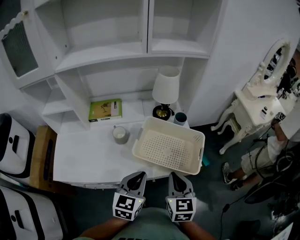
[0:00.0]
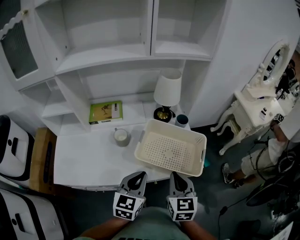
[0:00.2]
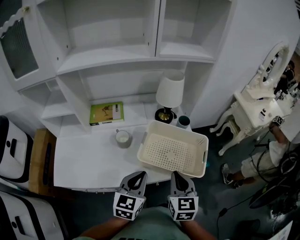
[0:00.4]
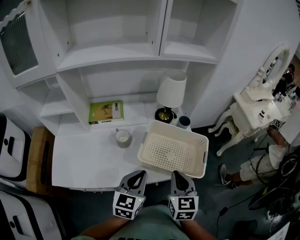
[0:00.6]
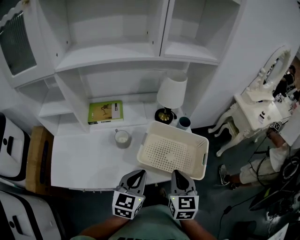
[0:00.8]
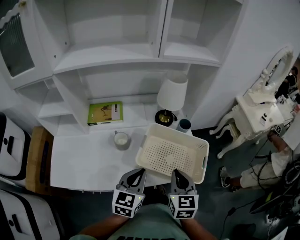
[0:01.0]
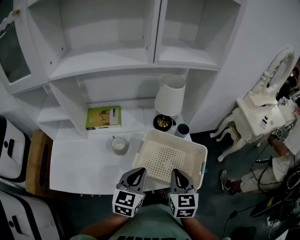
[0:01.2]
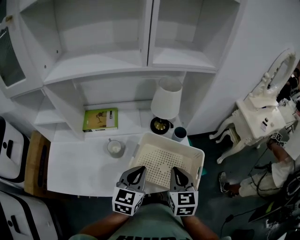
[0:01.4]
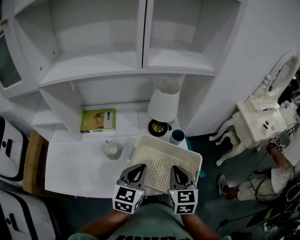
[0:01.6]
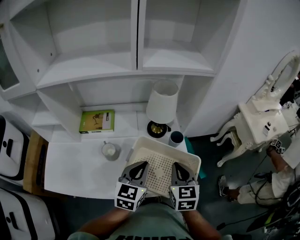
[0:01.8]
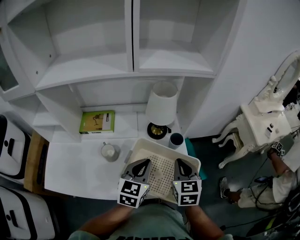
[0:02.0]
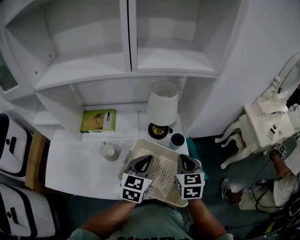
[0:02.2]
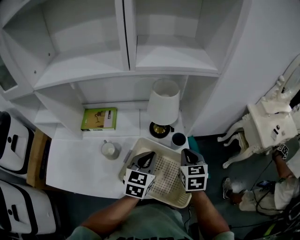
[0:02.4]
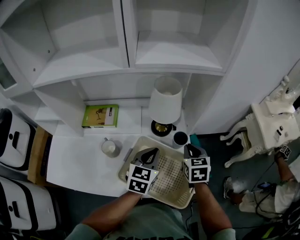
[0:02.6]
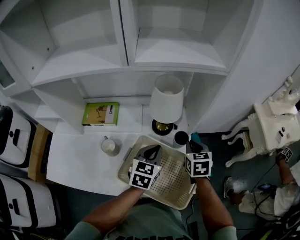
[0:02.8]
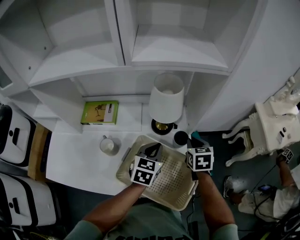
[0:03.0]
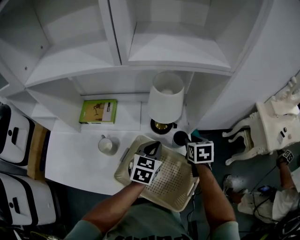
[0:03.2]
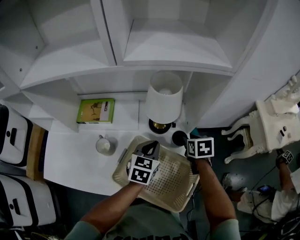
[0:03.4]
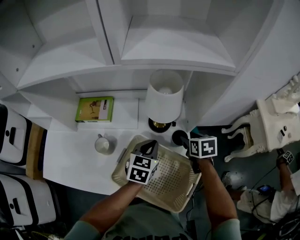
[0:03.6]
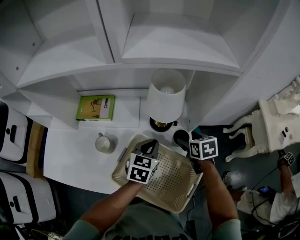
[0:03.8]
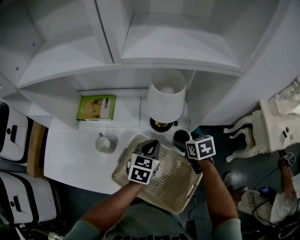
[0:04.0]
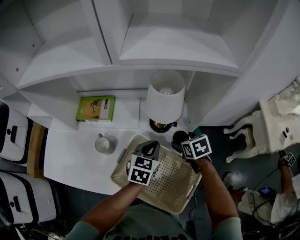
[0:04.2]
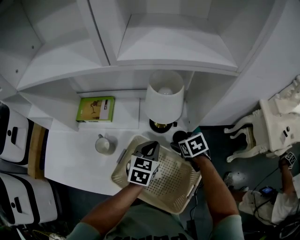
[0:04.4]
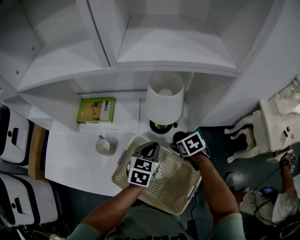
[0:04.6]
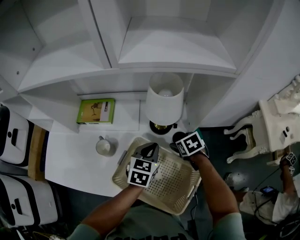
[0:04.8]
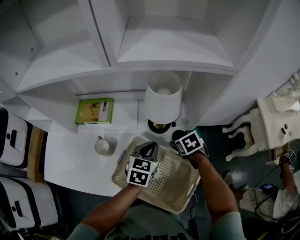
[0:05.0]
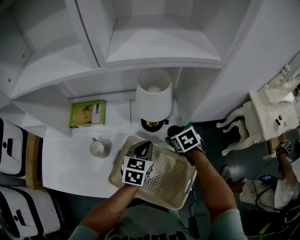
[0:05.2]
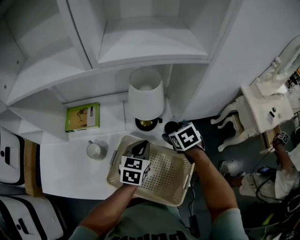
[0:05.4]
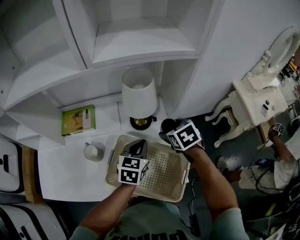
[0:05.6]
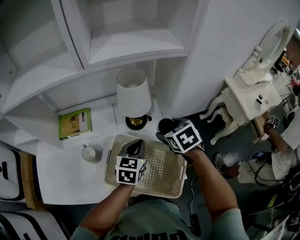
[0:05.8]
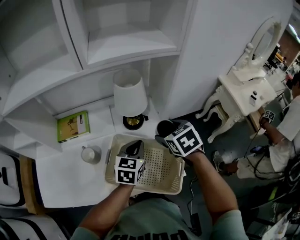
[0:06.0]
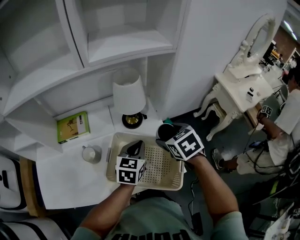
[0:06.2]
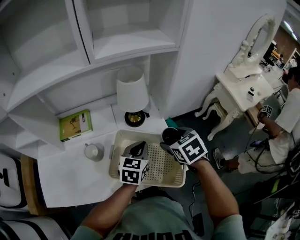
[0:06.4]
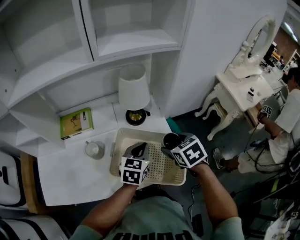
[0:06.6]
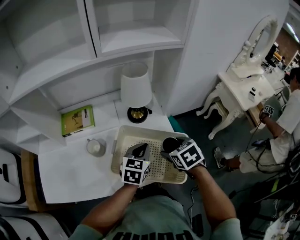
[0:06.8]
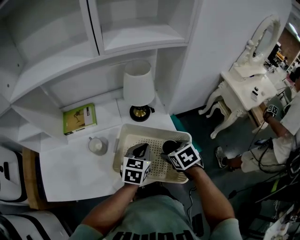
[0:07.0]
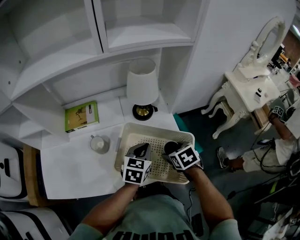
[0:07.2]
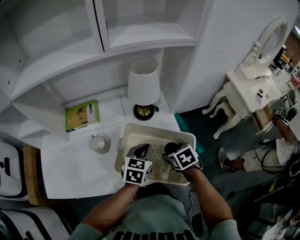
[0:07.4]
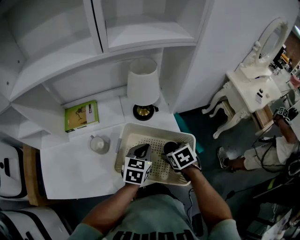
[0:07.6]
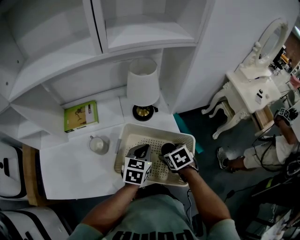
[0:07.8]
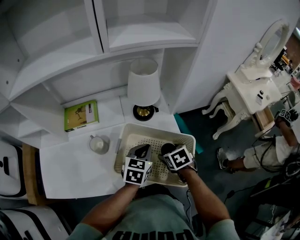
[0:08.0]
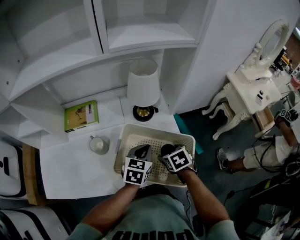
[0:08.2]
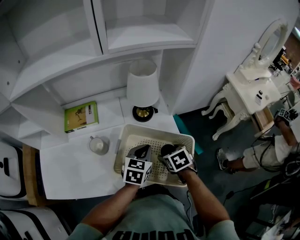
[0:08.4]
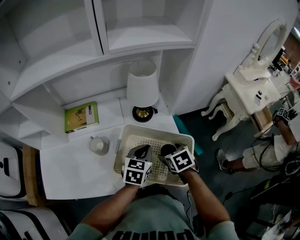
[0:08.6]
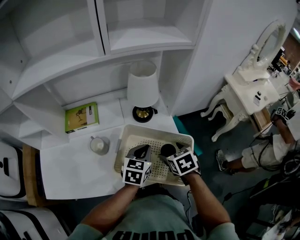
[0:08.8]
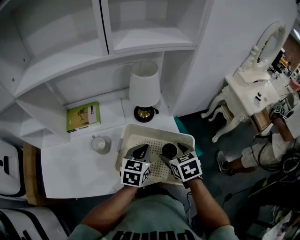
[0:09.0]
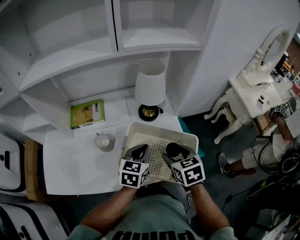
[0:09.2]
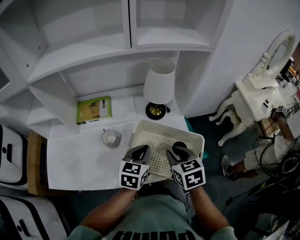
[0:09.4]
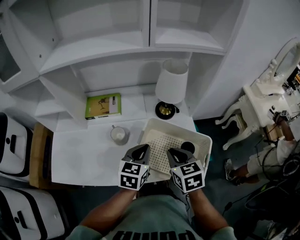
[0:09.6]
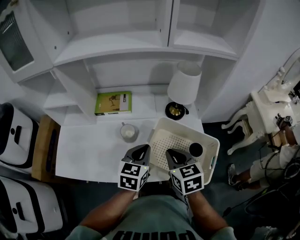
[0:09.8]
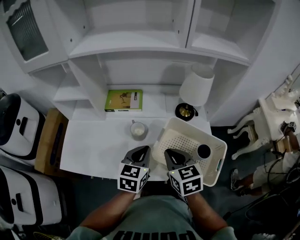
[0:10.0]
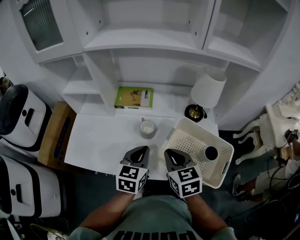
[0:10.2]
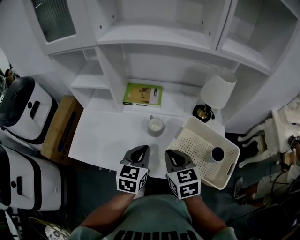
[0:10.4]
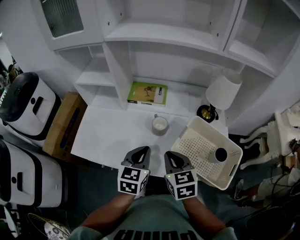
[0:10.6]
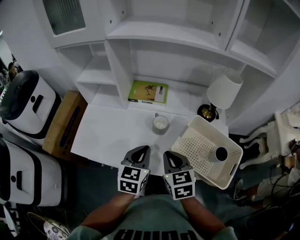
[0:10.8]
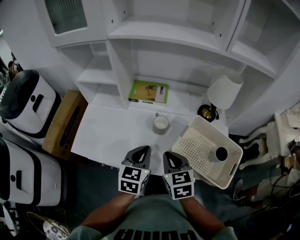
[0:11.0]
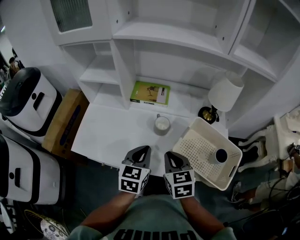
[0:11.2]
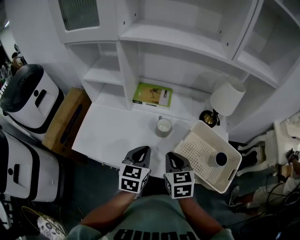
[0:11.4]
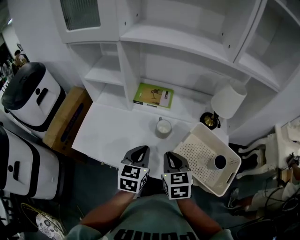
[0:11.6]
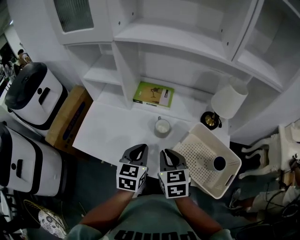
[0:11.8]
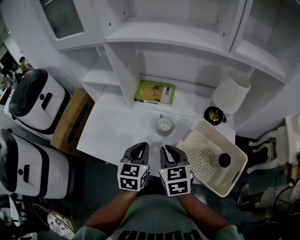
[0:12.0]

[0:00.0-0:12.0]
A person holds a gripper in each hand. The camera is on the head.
0.0 to 1.6 s: The grippers both shift forward by some 15 cm.
1.6 to 3.0 s: The right gripper goes roughly 20 cm forward. Meanwhile the left gripper goes about 20 cm forward, to the right and downward.
3.0 to 4.4 s: The right gripper moves downward, roughly 10 cm, turns by about 30 degrees, and opens.
4.4 to 6.0 s: The left gripper shifts about 5 cm backward. Meanwhile the right gripper shifts about 15 cm upward and backward.
6.0 to 7.6 s: The left gripper moves backward, about 5 cm. Meanwhile the right gripper shifts some 15 cm downward and backward.
7.6 to 9.0 s: The right gripper travels upward by about 5 cm.
9.0 to 10.4 s: The grippers both shift to the left by about 25 cm. The right gripper swivels roughly 30 degrees, and closes its fingers, while the left gripper rotates roughly 30 degrees.
10.4 to 12.0 s: The grippers stay close to where they were, moving slightly.

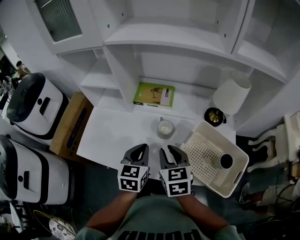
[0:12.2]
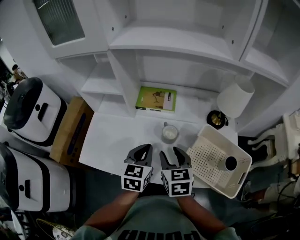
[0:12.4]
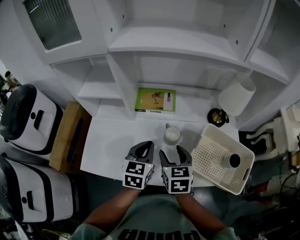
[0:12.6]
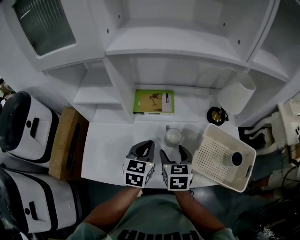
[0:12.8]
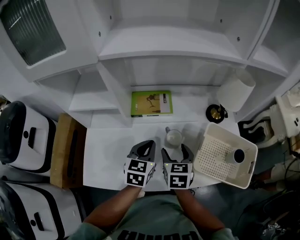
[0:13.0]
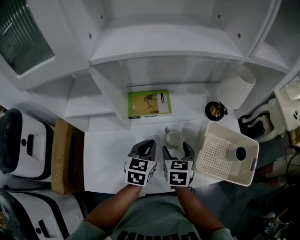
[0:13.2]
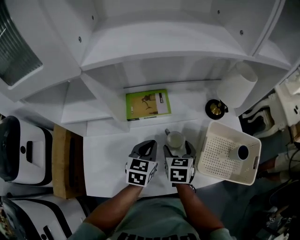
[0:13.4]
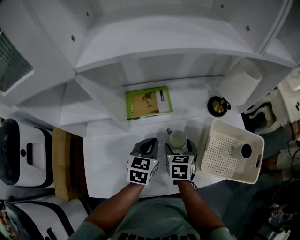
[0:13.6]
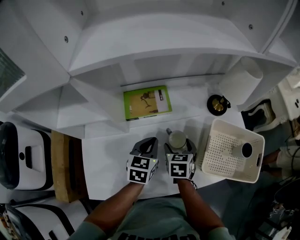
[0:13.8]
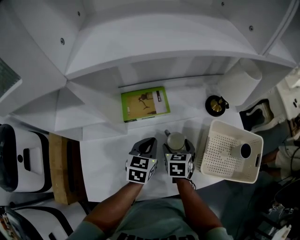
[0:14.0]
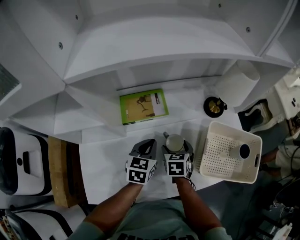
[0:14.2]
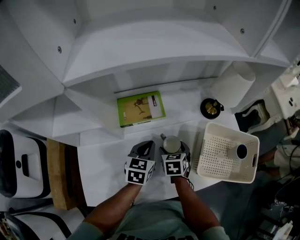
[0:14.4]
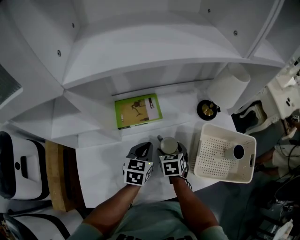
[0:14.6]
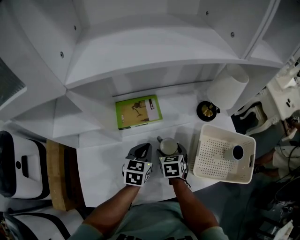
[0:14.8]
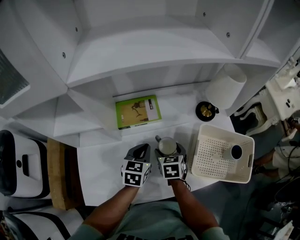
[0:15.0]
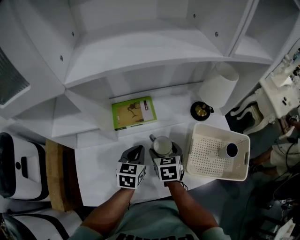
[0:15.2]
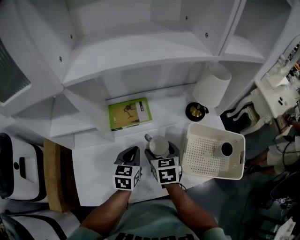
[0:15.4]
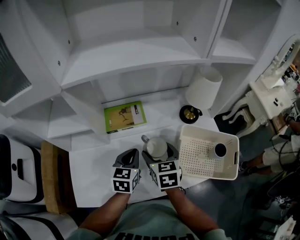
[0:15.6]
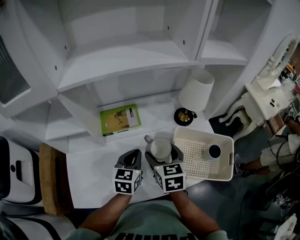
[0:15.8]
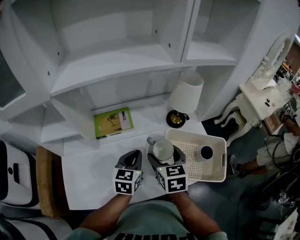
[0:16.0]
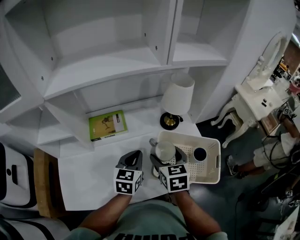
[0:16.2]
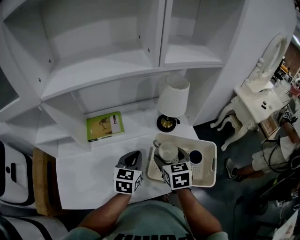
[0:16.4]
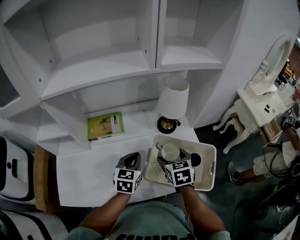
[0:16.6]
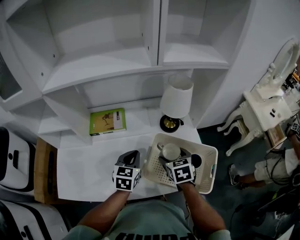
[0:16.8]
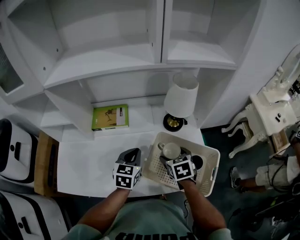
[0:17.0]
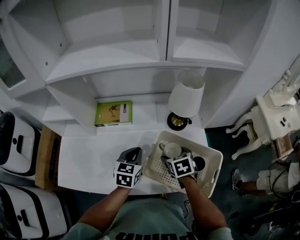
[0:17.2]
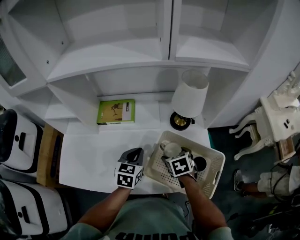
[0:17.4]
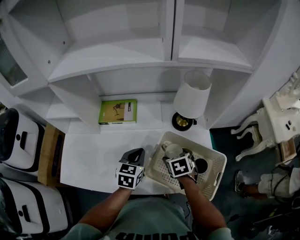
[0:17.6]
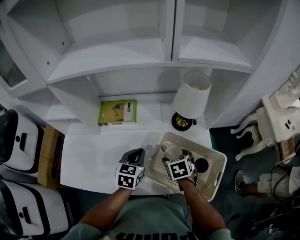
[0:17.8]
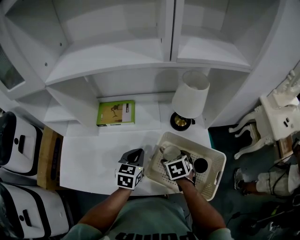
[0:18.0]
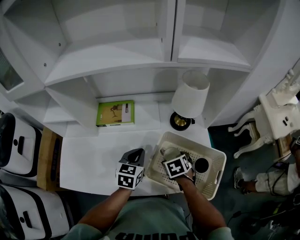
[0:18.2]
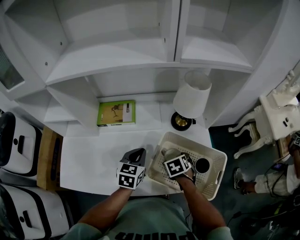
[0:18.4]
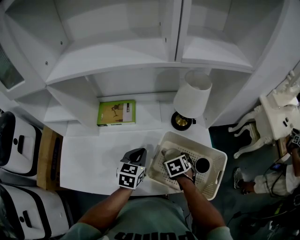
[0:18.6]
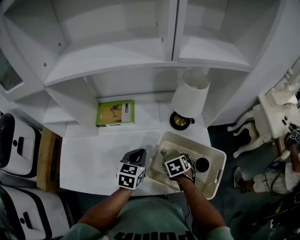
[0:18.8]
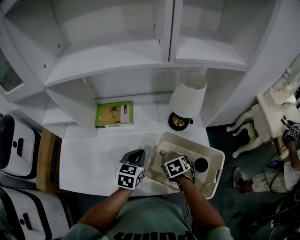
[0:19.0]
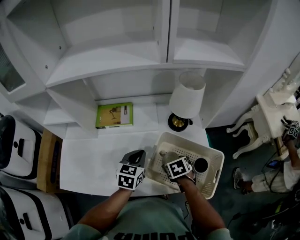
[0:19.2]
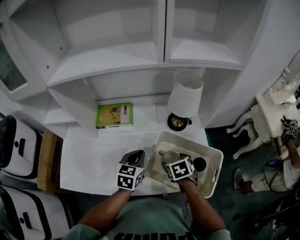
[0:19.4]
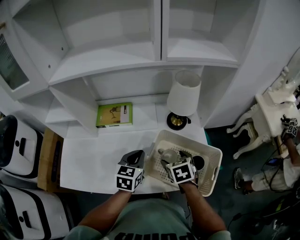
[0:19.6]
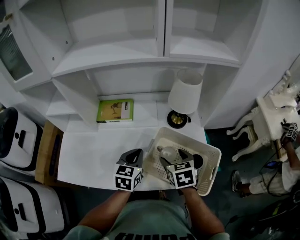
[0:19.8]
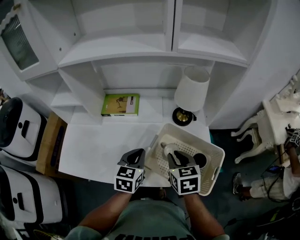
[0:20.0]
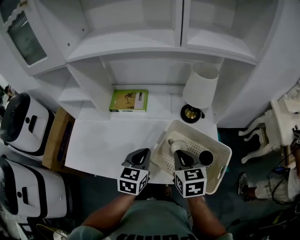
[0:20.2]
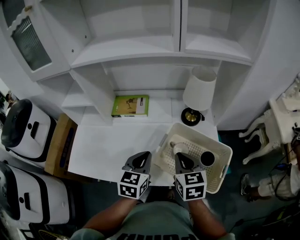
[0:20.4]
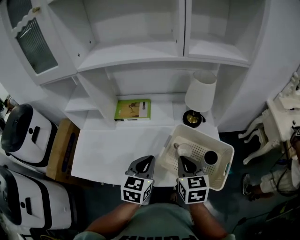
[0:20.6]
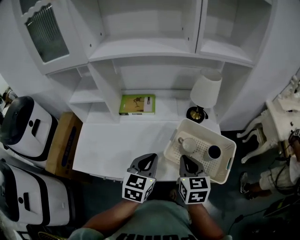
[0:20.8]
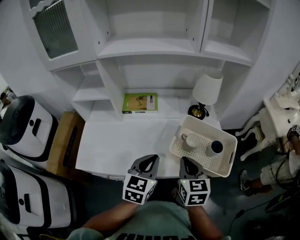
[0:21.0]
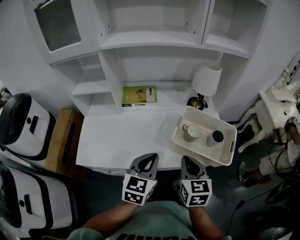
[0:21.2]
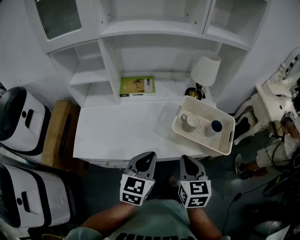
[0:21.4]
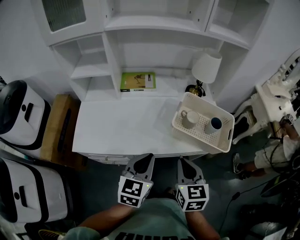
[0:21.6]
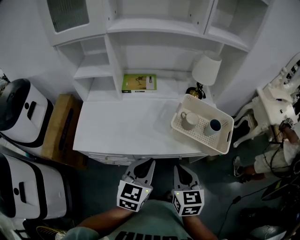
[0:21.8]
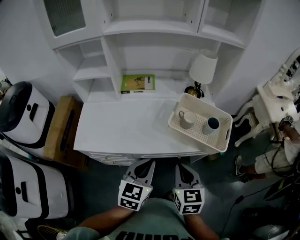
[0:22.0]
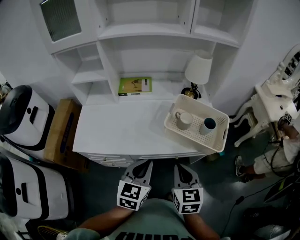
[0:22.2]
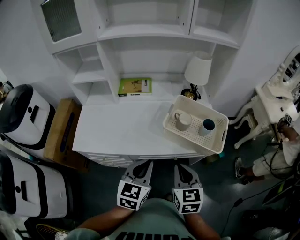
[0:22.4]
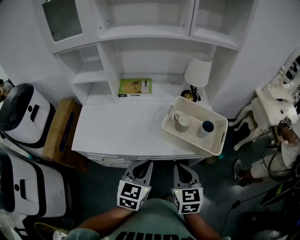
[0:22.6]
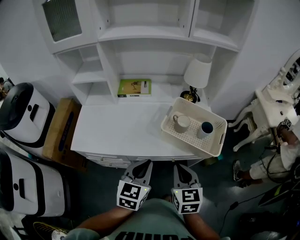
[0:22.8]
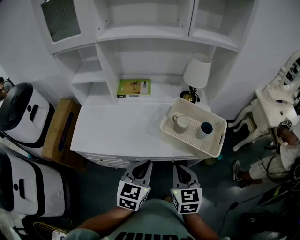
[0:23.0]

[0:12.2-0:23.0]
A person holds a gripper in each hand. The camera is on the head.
12.2 to 13.8 s: The left gripper changes place by some 20 cm, and rotates roughly 30 degrees, while the right gripper goes roughly 15 cm downward, swivels about 40 degrees, and opens.
13.8 to 15.2 s: The grippers make only small movements.
15.2 to 16.8 s: Both grippers move to the right, some 20 cm.
16.8 to 18.4 s: The right gripper heads downward, covering approximately 10 cm, and swivels some 20 degrees.
18.4 to 20.0 s: The right gripper moves upward, approximately 15 cm, turns by about 30 degrees, and closes its fingers. The left gripper moves backward, about 5 cm.
20.0 to 21.4 s: Both grippers travel together backward and to the left, roughly 20 cm.
21.4 to 23.0 s: Both grippers travel together to the right, approximately 5 cm.

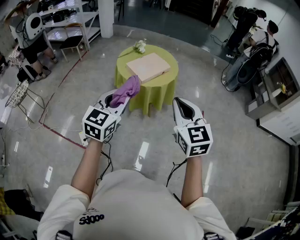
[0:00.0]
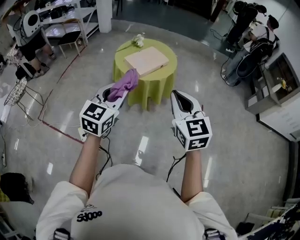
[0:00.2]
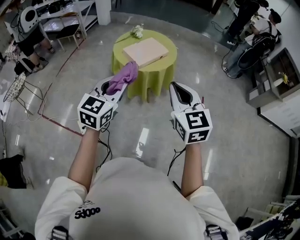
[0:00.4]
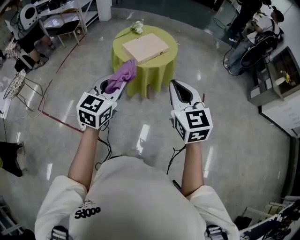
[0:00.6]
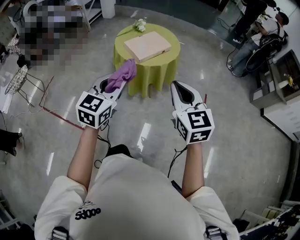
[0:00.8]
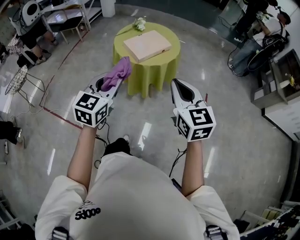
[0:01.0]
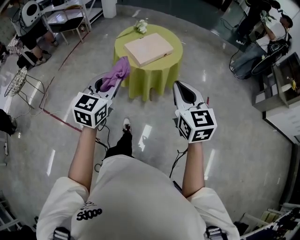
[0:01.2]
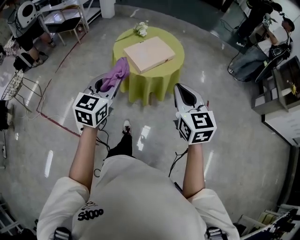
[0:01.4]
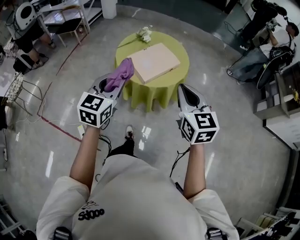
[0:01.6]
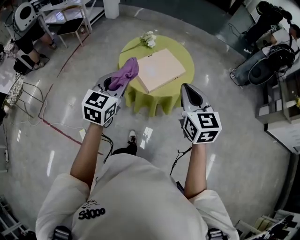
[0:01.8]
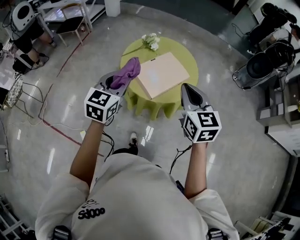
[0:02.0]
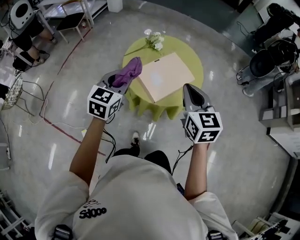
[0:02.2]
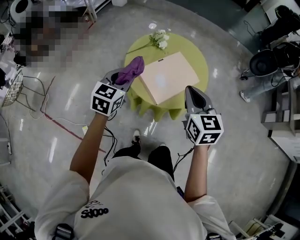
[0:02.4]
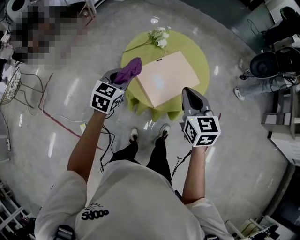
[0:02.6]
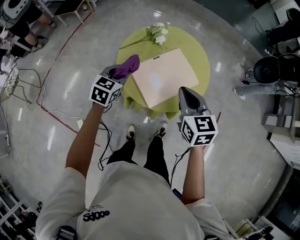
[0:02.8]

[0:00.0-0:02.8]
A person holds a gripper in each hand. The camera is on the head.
0.0 to 1.4 s: The right gripper shifts about 15 cm forward and downward. The left gripper moves forward, some 15 cm.
1.4 to 2.8 s: The left gripper goes some 40 cm forward and downward, and changes its angle by some 20 degrees; the right gripper shifts some 35 cm forward.
